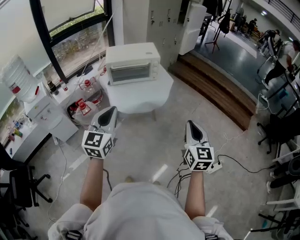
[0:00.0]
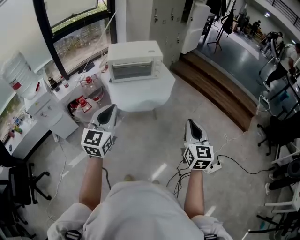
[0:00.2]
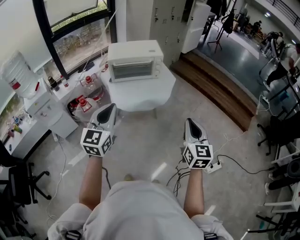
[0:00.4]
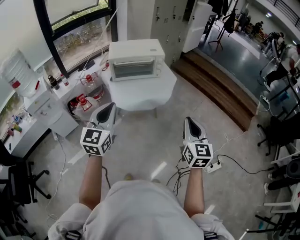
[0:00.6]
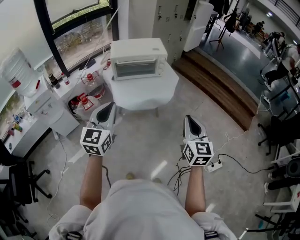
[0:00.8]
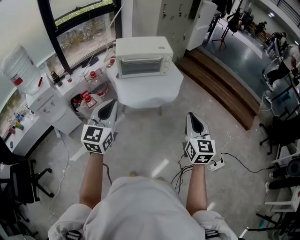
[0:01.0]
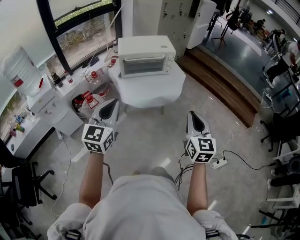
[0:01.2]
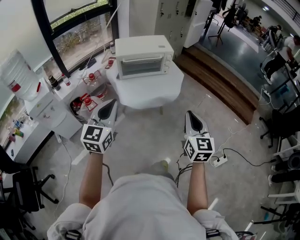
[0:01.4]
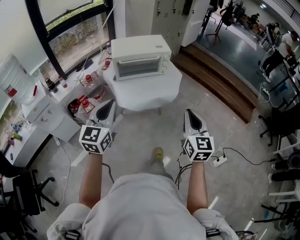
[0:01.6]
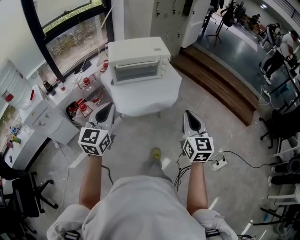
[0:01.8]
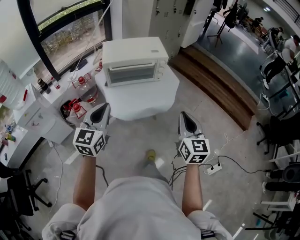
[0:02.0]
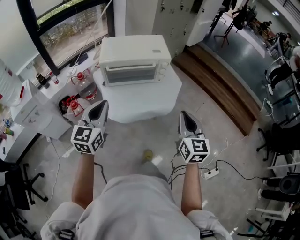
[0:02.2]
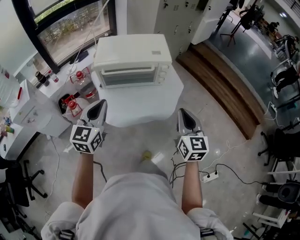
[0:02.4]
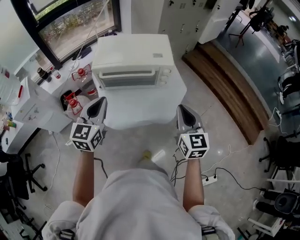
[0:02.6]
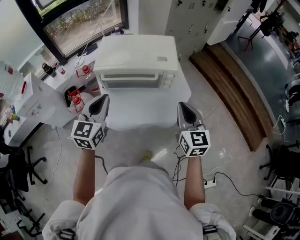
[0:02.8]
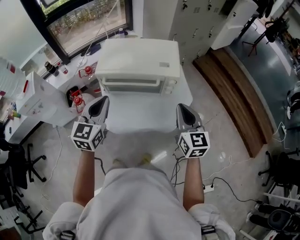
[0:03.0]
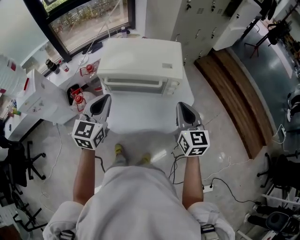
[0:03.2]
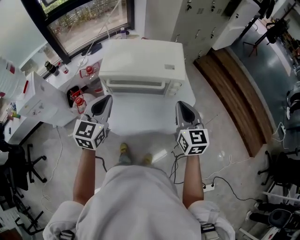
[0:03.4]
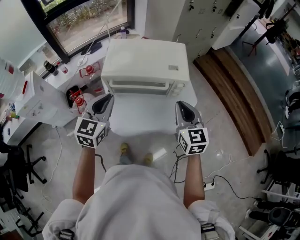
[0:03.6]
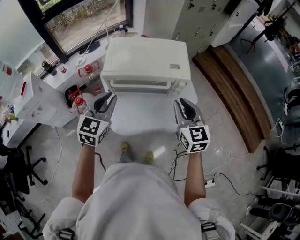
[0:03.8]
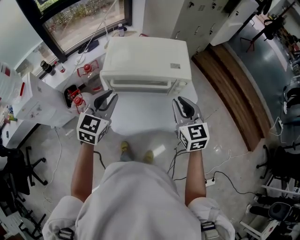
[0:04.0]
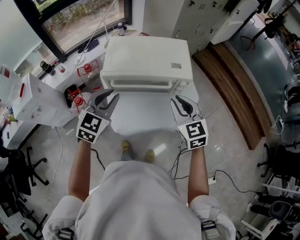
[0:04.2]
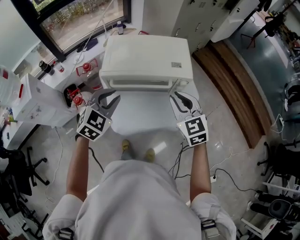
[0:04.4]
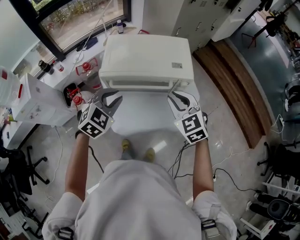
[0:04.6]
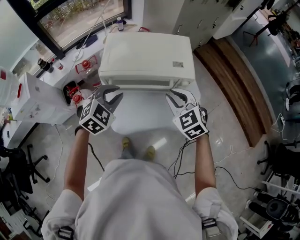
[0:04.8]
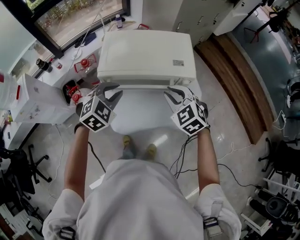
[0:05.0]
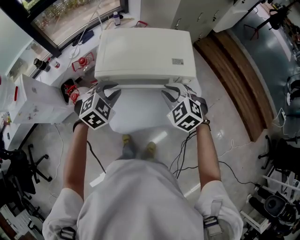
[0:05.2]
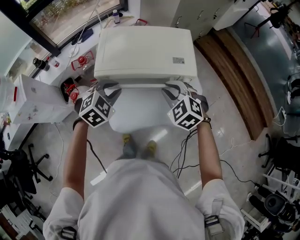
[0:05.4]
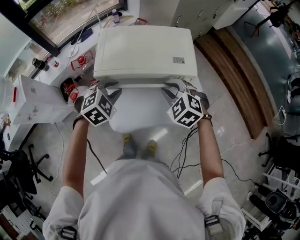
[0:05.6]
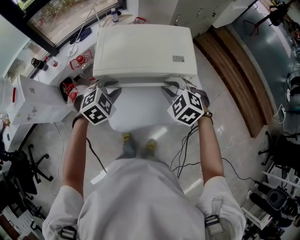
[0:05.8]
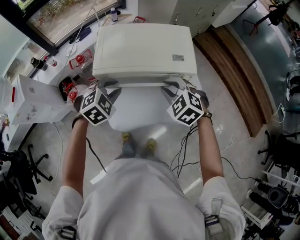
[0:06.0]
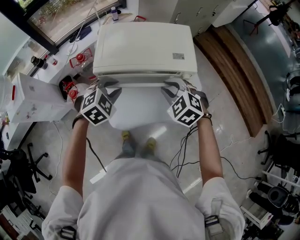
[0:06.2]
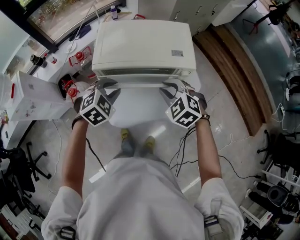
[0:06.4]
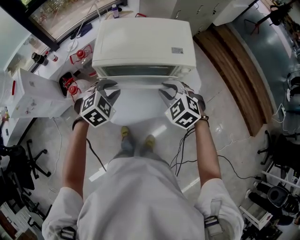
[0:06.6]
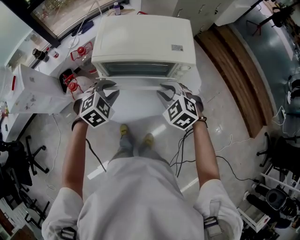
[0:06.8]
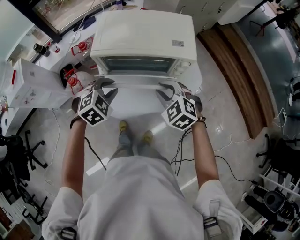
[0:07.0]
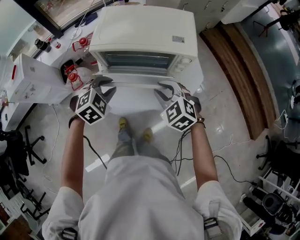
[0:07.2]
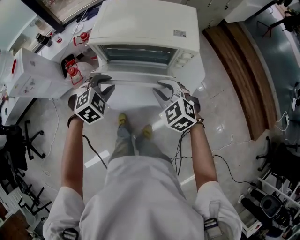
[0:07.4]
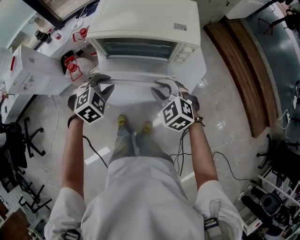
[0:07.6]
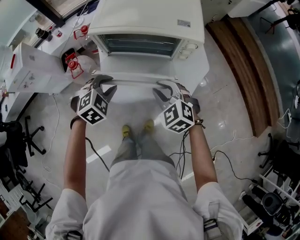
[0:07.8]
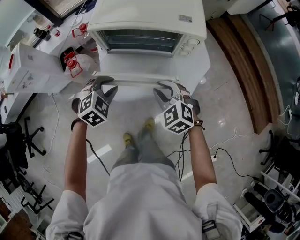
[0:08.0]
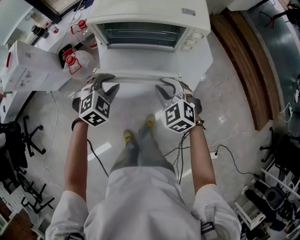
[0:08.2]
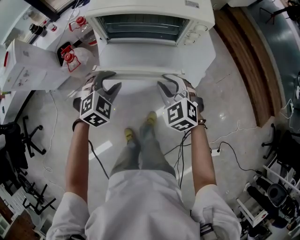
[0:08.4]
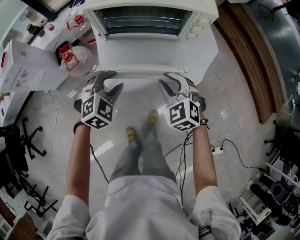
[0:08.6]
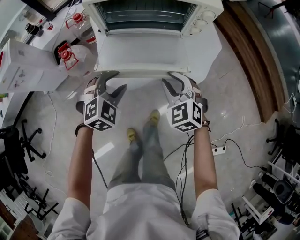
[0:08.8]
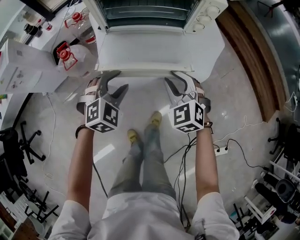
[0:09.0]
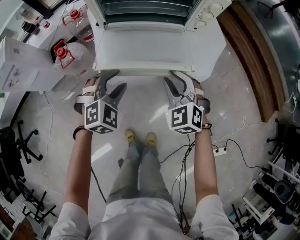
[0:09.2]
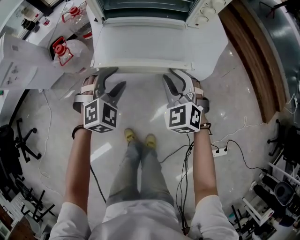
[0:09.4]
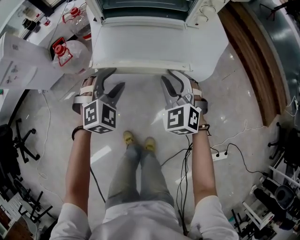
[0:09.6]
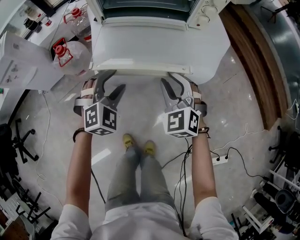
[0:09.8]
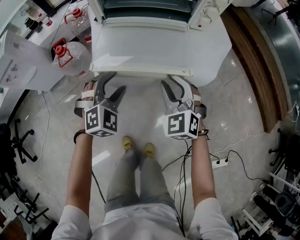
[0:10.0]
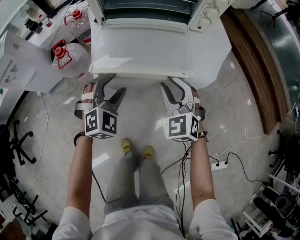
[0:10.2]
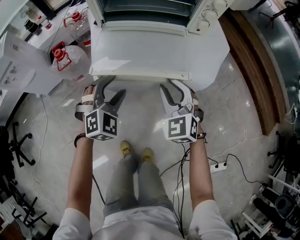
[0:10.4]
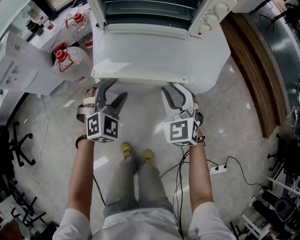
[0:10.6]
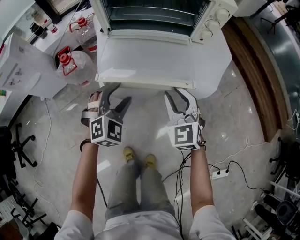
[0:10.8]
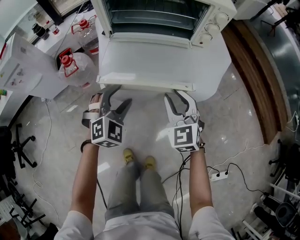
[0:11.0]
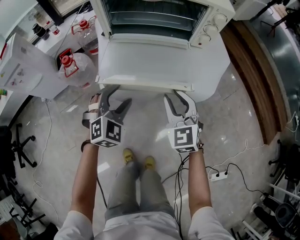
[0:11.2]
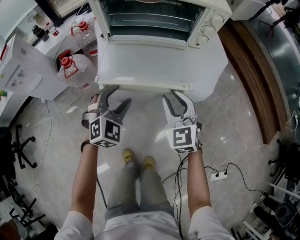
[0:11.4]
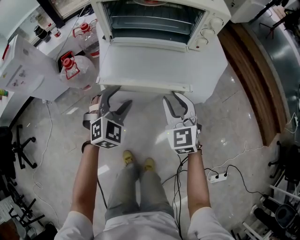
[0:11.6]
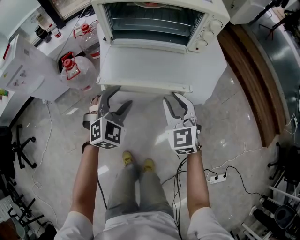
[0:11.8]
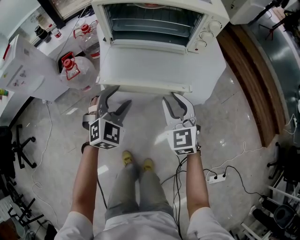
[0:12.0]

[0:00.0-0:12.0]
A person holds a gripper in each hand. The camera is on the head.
0:00.0 to 0:01.6: Both grippers travel together to the left and forward, roughly 15 cm.
0:01.6 to 0:03.0: The grippers both shift forward by some 40 cm. The right gripper changes its angle by some 20 degrees.
0:03.0 to 0:04.4: The right gripper shifts some 10 cm to the left and forward, and swivels about 20 degrees. Meanwhile the left gripper is displaced forward and downward by about 10 cm, and turns by some 40 degrees.
0:04.4 to 0:06.0: Both grippers move downward and forward, some 10 cm. The left gripper rotates some 20 degrees. Meanwhile the right gripper rotates roughly 30 degrees.
0:06.0 to 0:07.6: The two grippers go roughly 15 cm backward and downward.
0:07.6 to 0:09.0: Both grippers travel together downward and backward, about 15 cm.
0:09.0 to 0:10.4: Both grippers move downward, some 5 cm.
0:10.4 to 0:12.0: The left gripper heads upward, covering approximately 5 cm.

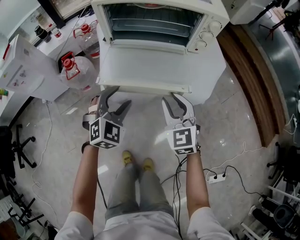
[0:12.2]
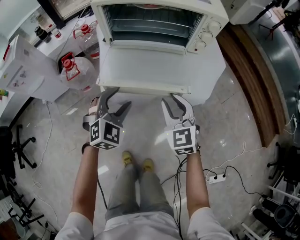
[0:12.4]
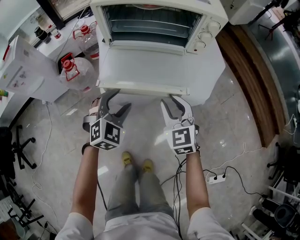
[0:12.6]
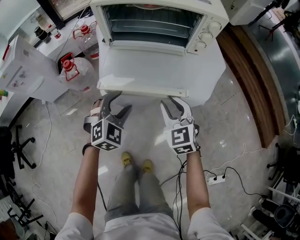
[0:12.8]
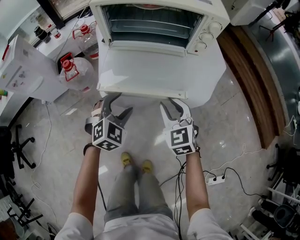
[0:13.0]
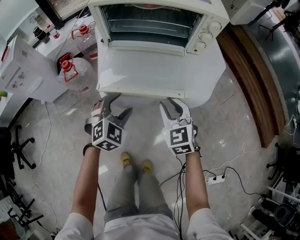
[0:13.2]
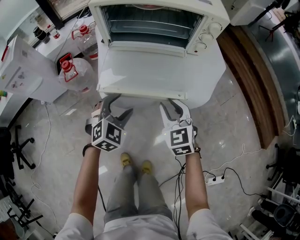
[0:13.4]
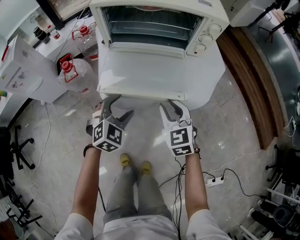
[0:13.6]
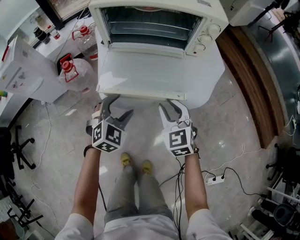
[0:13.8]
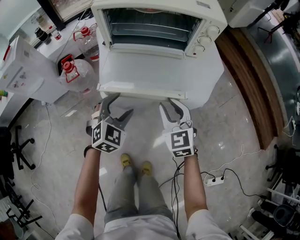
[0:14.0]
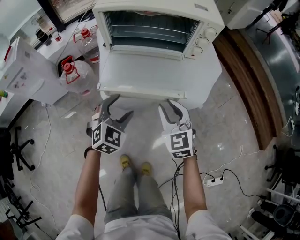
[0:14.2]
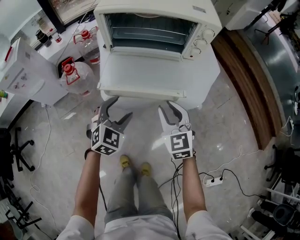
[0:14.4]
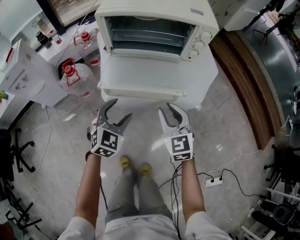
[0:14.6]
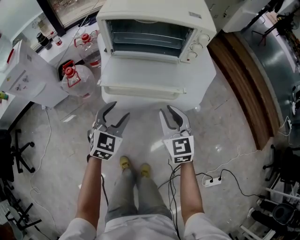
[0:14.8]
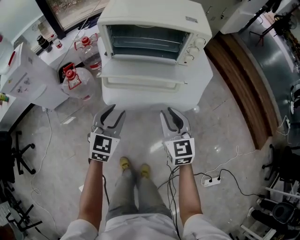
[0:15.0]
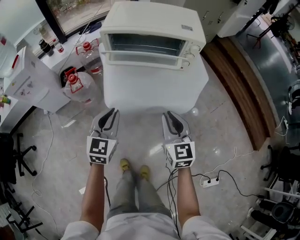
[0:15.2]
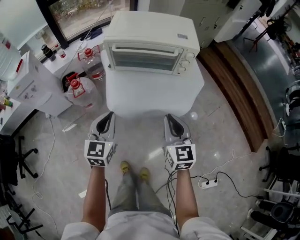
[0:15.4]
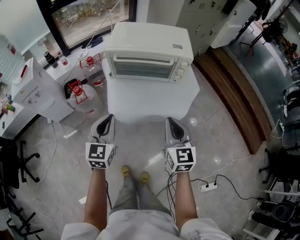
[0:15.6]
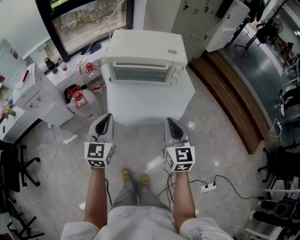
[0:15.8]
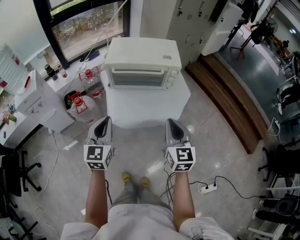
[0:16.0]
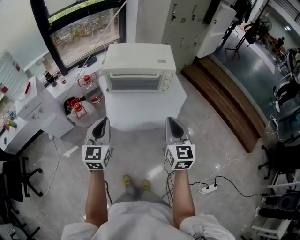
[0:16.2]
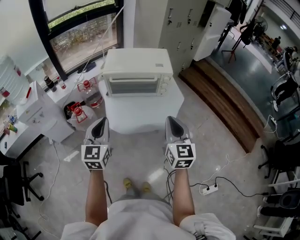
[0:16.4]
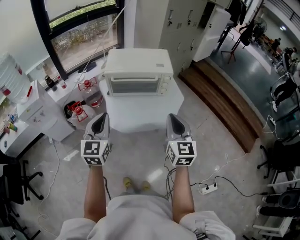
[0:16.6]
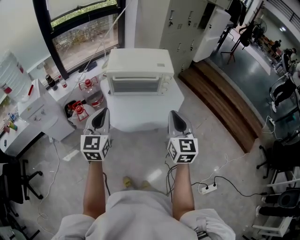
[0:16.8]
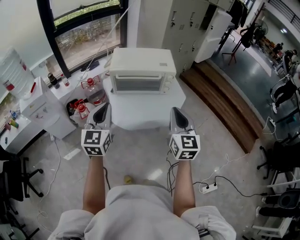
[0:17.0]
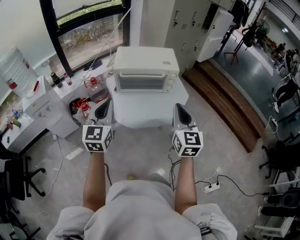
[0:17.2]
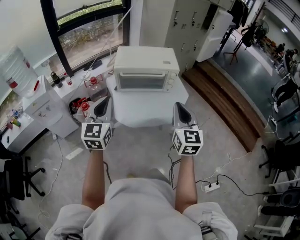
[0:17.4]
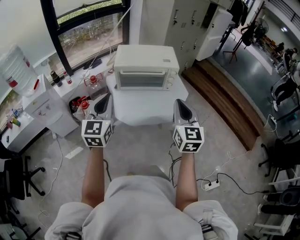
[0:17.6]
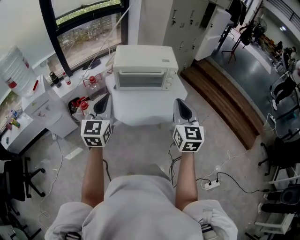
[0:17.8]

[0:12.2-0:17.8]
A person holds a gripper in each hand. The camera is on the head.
0:12.2 to 0:13.6: The grippers stay close to where they were, moving slightly.
0:13.6 to 0:15.0: The two grippers go approximately 10 cm upward. The left gripper turns by approximately 30 degrees, and closes up.
0:15.0 to 0:16.4: The two grippers go roughly 25 cm upward. The right gripper closes. Meanwhile the left gripper closes its fingers.
0:16.4 to 0:17.8: The two grippers go roughly 5 cm upward.

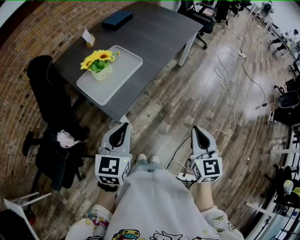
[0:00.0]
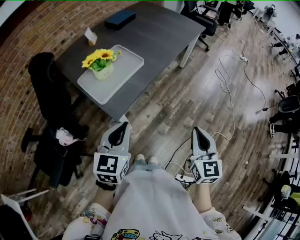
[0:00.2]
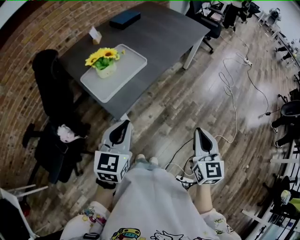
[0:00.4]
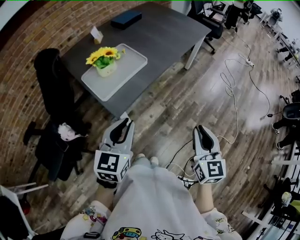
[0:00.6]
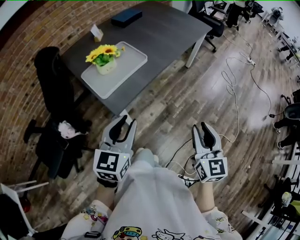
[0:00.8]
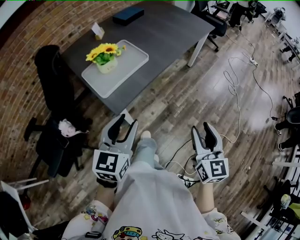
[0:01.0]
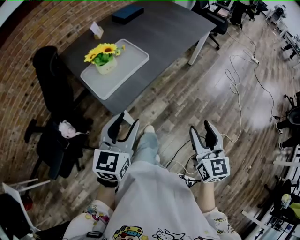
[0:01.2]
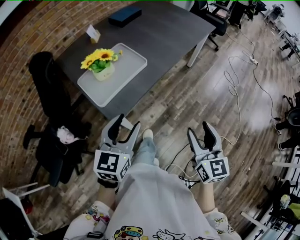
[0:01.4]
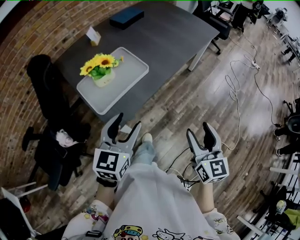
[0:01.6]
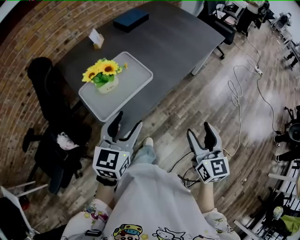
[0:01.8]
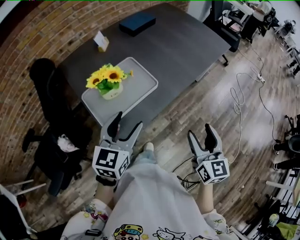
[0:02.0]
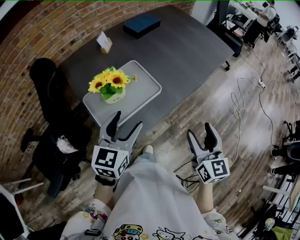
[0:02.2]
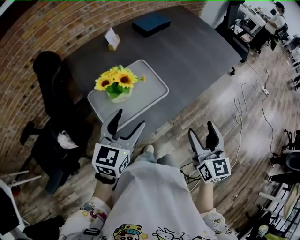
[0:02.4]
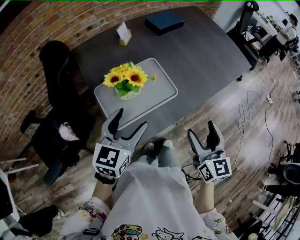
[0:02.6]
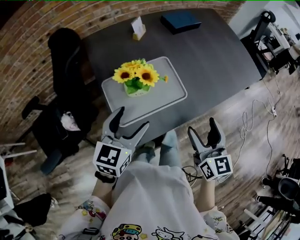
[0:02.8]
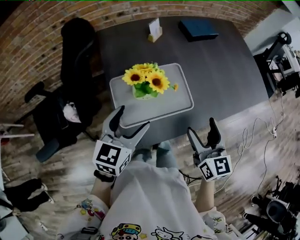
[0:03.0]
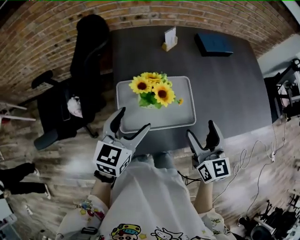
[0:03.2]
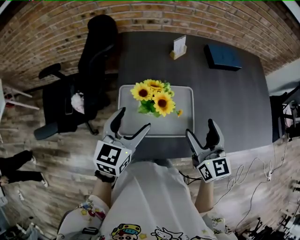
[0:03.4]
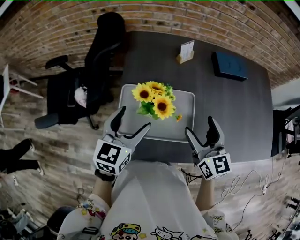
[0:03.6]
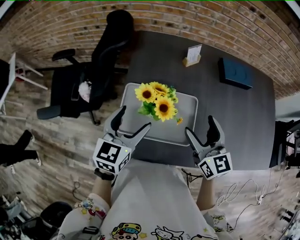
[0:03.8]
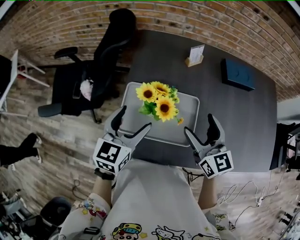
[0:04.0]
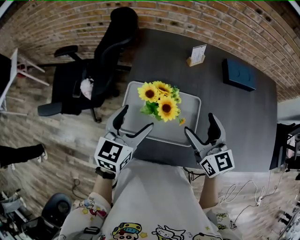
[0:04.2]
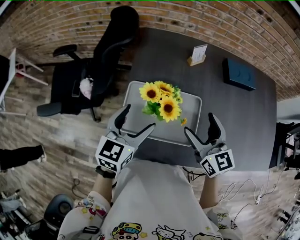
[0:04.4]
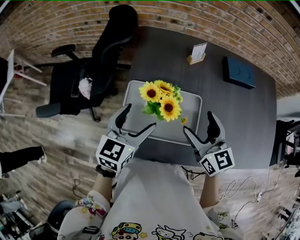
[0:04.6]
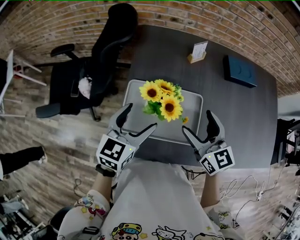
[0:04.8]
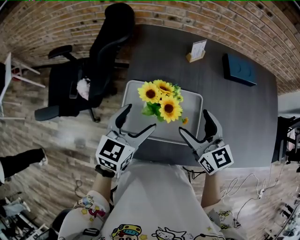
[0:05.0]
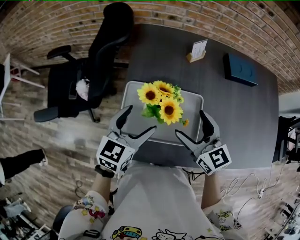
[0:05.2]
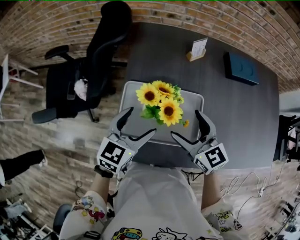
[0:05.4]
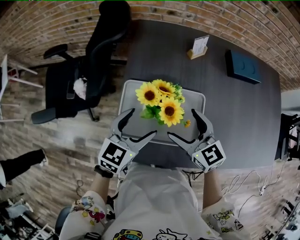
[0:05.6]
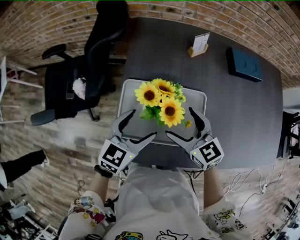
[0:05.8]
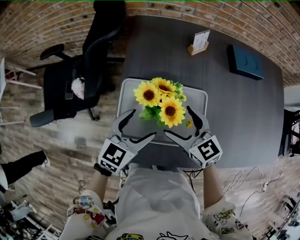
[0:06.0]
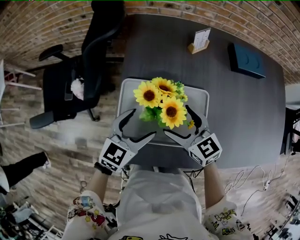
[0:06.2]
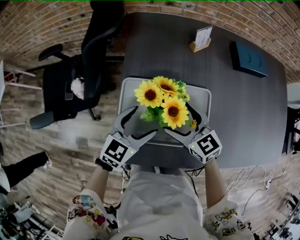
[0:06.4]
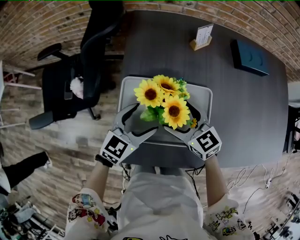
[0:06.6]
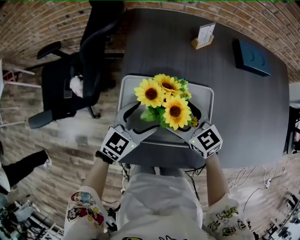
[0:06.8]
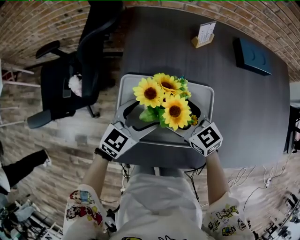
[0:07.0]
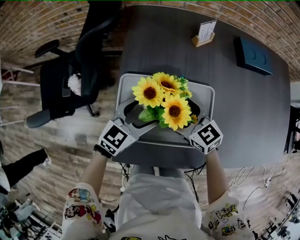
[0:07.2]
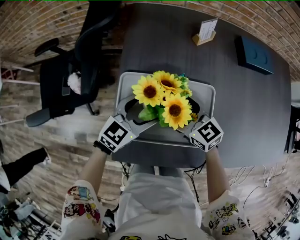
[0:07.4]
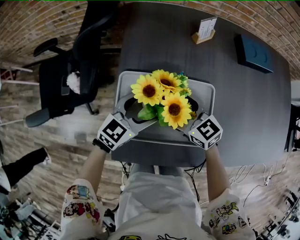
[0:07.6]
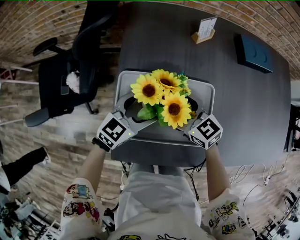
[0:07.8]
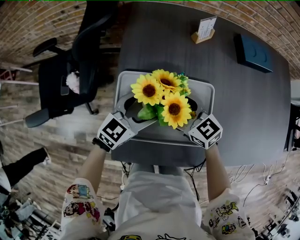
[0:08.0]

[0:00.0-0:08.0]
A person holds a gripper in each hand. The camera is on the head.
0:00.0 to 0:01.6: The two grippers go roughly 10 cm forward. The right gripper opens up; the left gripper opens.
0:01.6 to 0:03.2: The right gripper changes place by roughly 35 cm, and rotates some 40 degrees. The left gripper ends up approximately 20 cm from where it was, and turns by approximately 30 degrees.
0:03.2 to 0:04.8: The right gripper shifts roughly 10 cm forward, and swivels approximately 30 degrees.
0:04.8 to 0:06.4: The right gripper travels downward and to the left by approximately 15 cm, while the left gripper moves downward, about 10 cm.
0:06.4 to 0:08.0: The left gripper shifts by about 5 cm.
